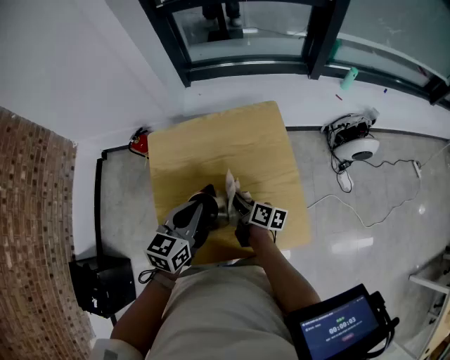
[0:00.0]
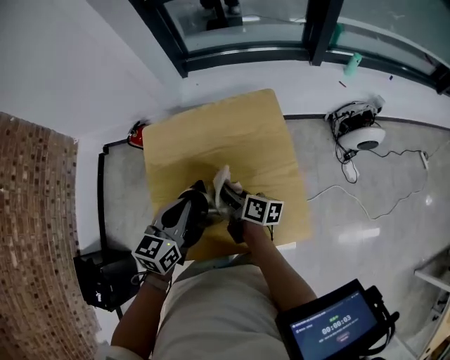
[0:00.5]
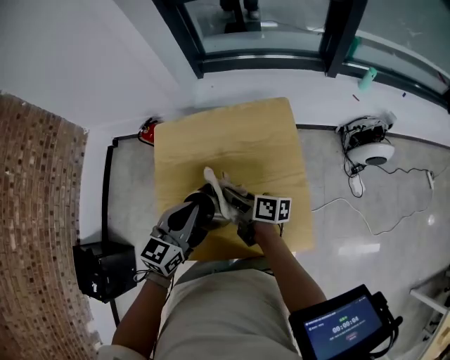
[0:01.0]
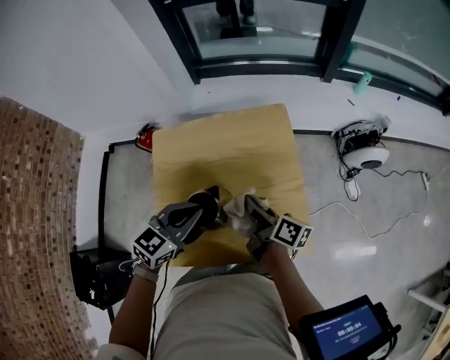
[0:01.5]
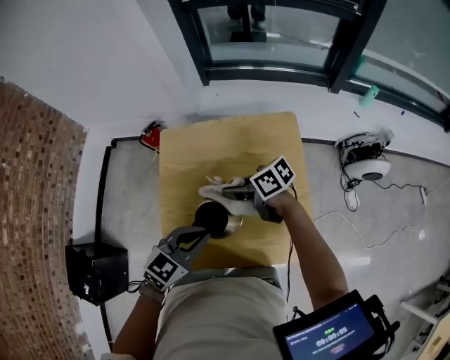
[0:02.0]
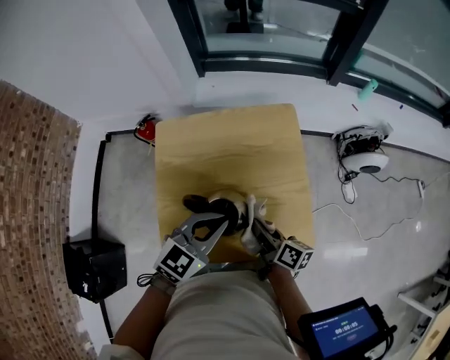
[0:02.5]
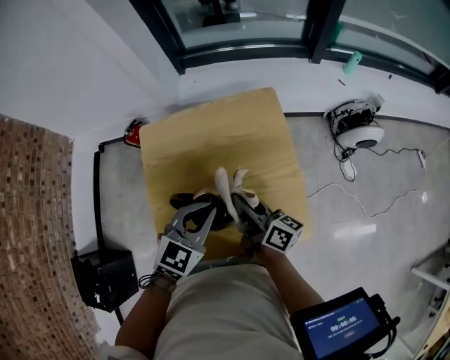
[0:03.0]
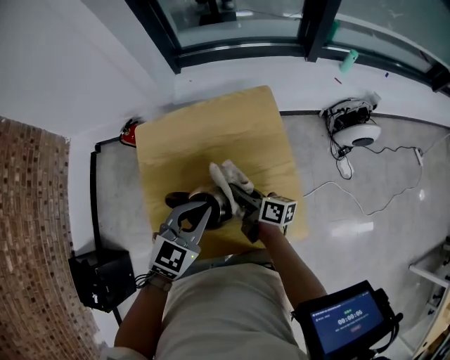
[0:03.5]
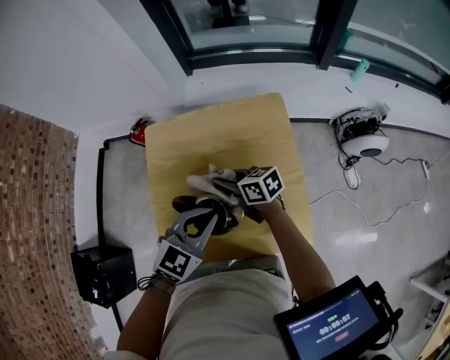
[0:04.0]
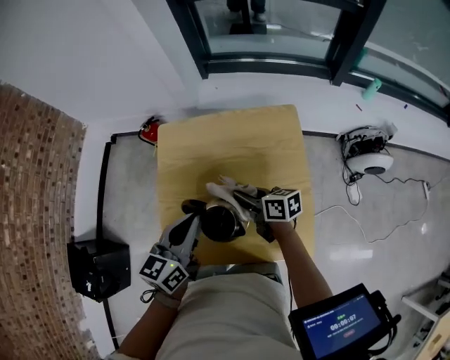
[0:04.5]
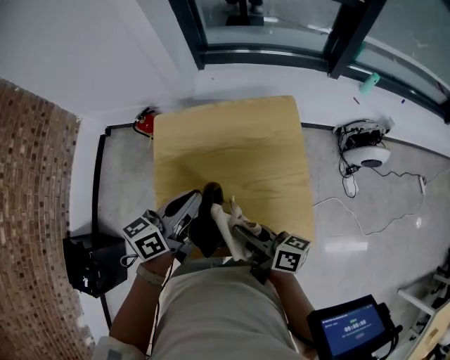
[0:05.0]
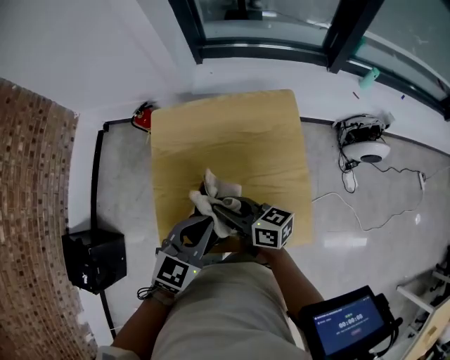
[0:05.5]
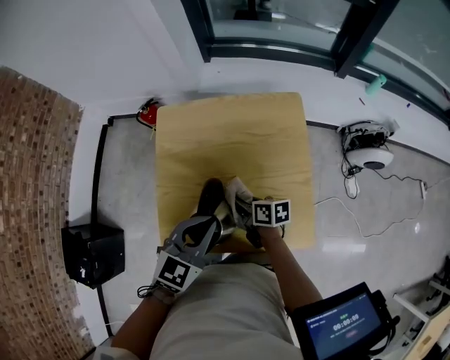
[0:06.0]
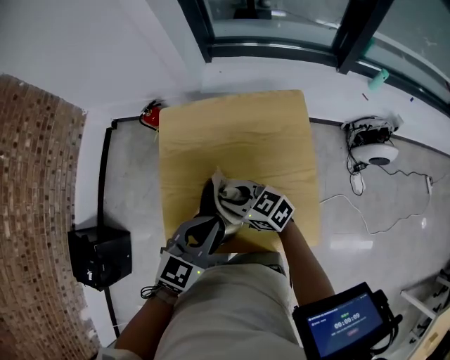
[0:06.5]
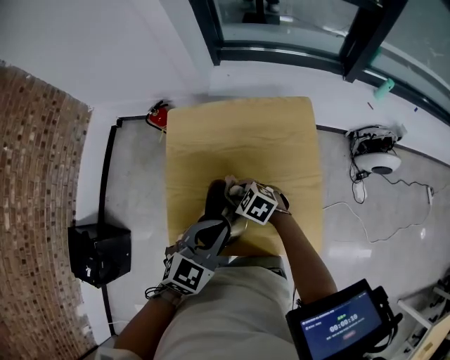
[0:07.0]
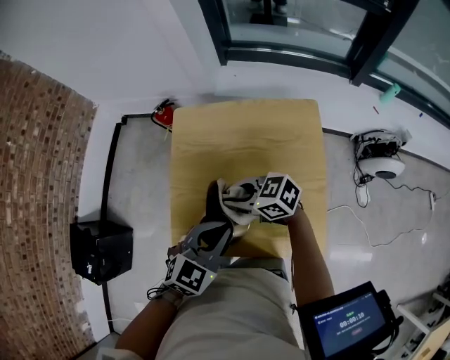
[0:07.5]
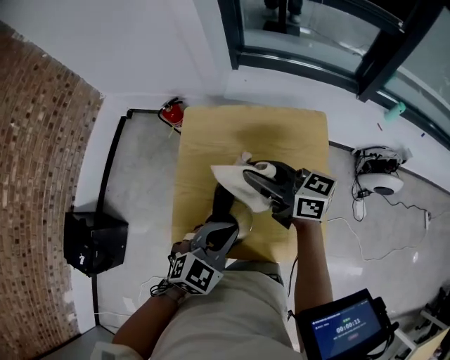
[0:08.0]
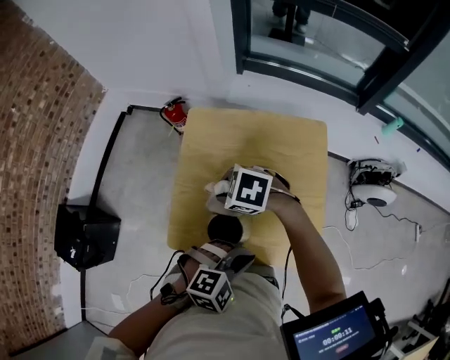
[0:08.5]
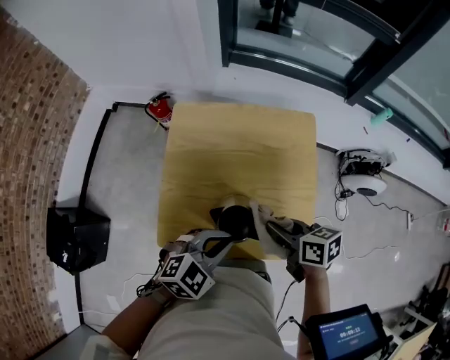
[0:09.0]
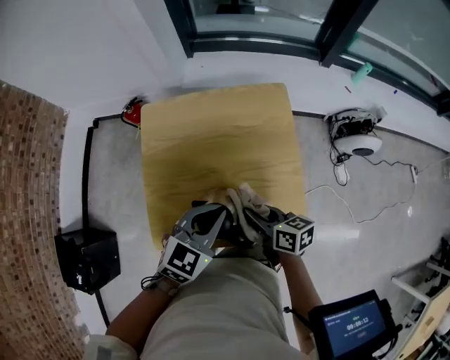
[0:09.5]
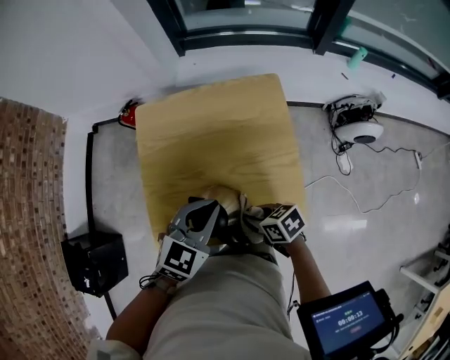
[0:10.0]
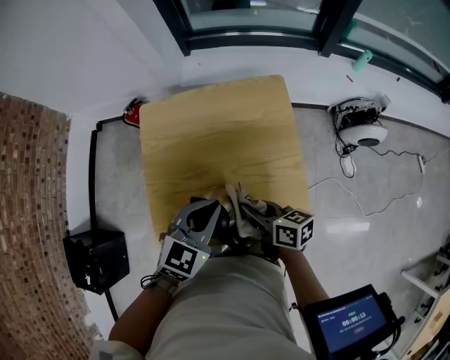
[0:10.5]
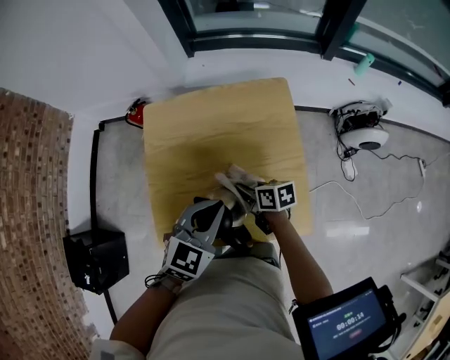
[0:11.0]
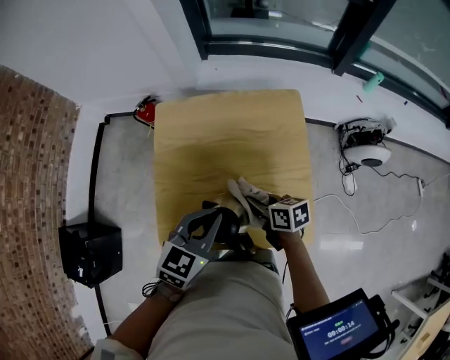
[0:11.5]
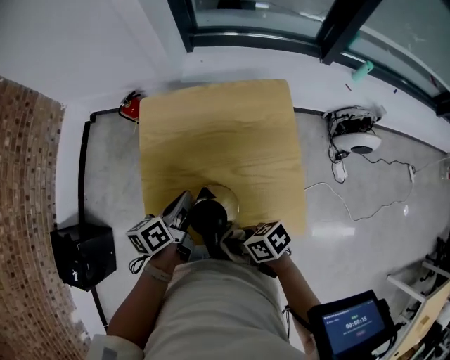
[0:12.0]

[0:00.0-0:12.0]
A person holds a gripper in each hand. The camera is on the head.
0:00.0 to 0:02.0: The left gripper changes place by some 5 cm, and turns by about 20 degrees. Meanwhile the right gripper heads upward, covering some 10 cm, and swivels some 60 degrees.
0:02.0 to 0:04.0: The right gripper turns by approximately 20 degrees. Meanwhile the left gripper ends up approximately 5 cm from where it was.
0:04.0 to 0:06.0: The left gripper shifts some 5 cm to the left, while the right gripper is displaced backward and downward by roughly 10 cm, and changes its angle by roughly 20 degrees.
0:06.0 to 0:08.0: The right gripper moves up and down over approximately 20 cm, changing direction 2 times, and changes its angle by roughly 40 degrees.
0:08.0 to 0:10.0: The right gripper shifts some 20 cm downward, and tips its fingers downward by about 40 degrees.
0:10.0 to 0:12.0: The right gripper heads to the left, covering approximately 10 cm, and reaches some 10 cm forward, then returns; the left gripper travels to the left, downward and forward by about 15 cm, and rotates around the line of its fingers by about 70 degrees, counterclockwise from behind.

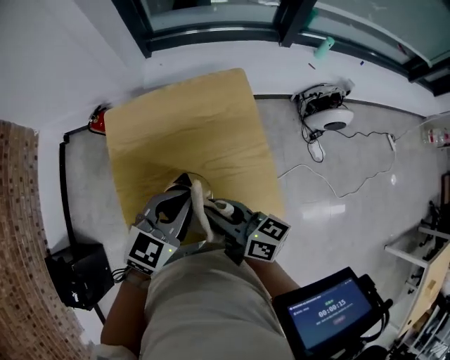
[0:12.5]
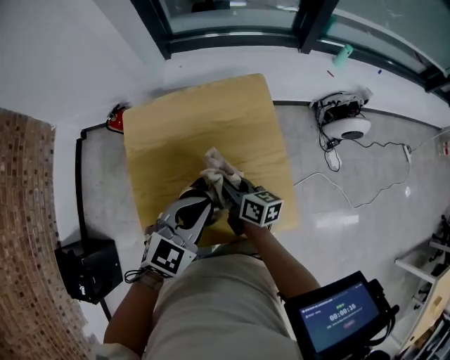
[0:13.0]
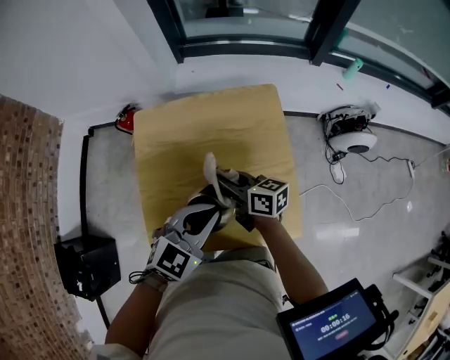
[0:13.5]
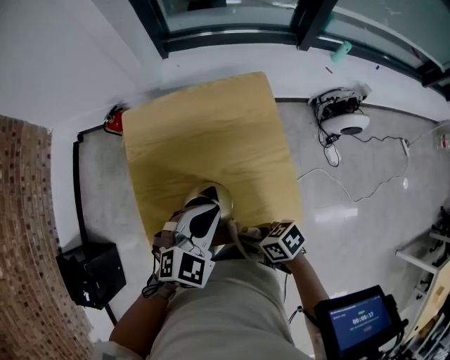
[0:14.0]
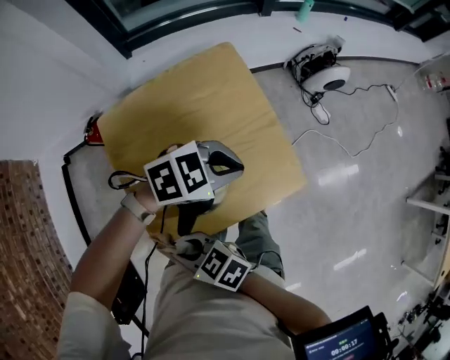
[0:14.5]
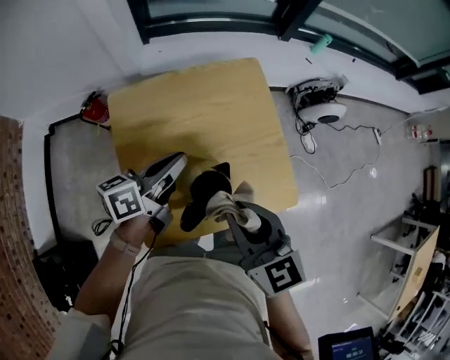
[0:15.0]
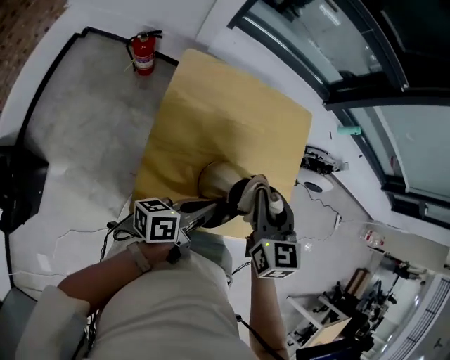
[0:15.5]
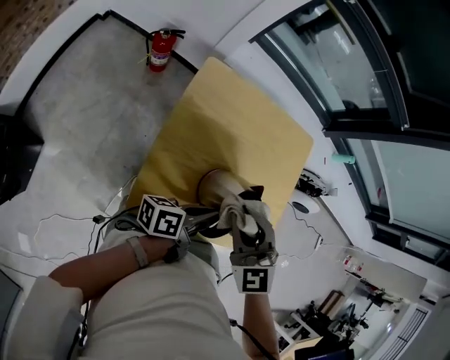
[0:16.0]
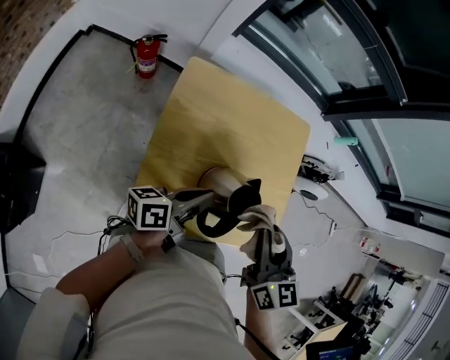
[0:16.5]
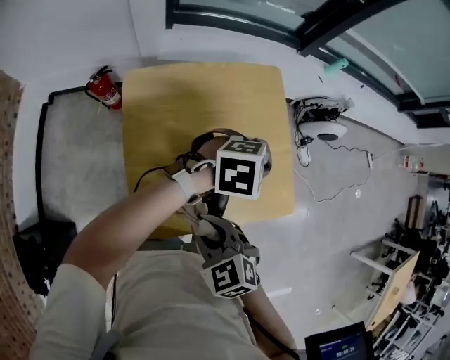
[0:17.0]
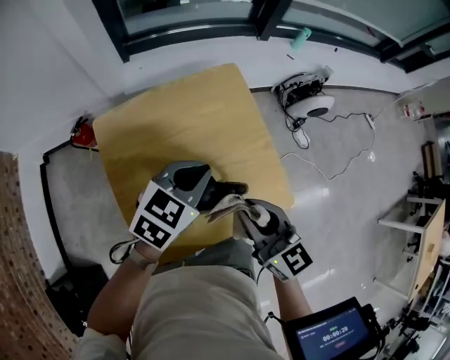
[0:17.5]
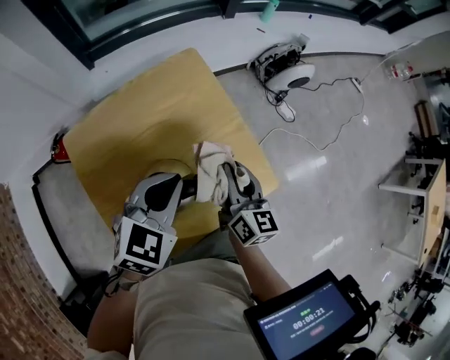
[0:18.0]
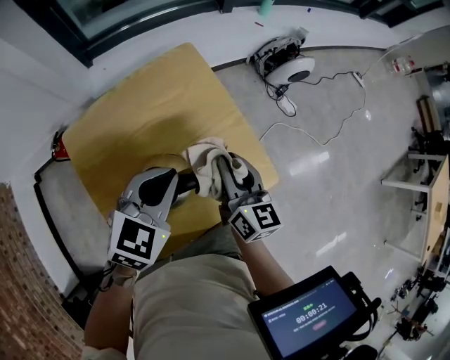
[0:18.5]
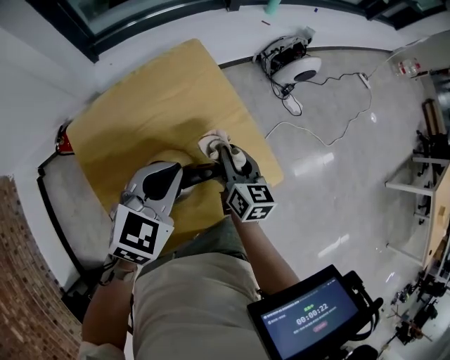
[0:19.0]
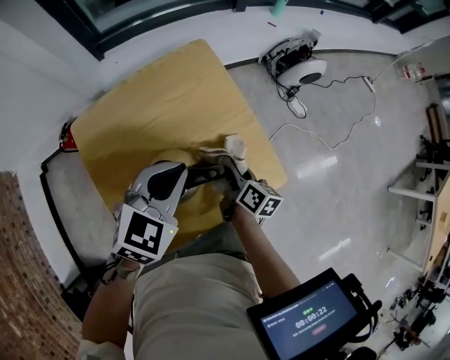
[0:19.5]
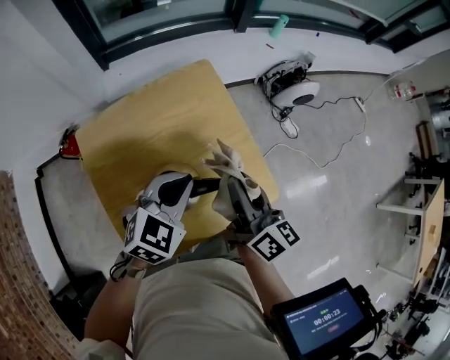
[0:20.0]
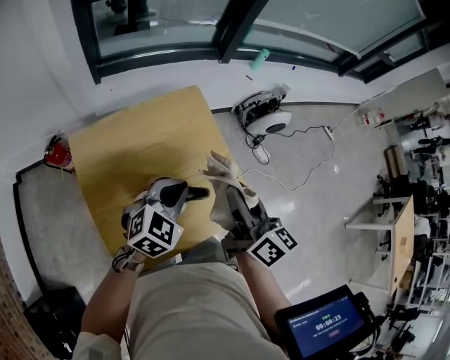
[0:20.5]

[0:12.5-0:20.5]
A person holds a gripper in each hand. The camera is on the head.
0:12.5 to 0:14.5: The left gripper shifts by about 10 cm, and swivels some 60 degrees. The right gripper goes up and down, some 10 cm each way, reversing 3 times, and swivels roughly 30 degrees.
0:14.5 to 0:16.5: The right gripper ends up approximately 20 cm from where it was, and swivels roughly 50 degrees. Meanwhile the left gripper ends up approximately 25 cm from where it was, and tilts its fingers about 40 degrees upward.
0:16.5 to 0:18.5: The right gripper goes up and down, some 15 cm each way, reversing 2 times, and rotates approximately 40 degrees, while the left gripper moves some 20 cm, and twists some 80 degrees clockwise, seen from behind.
0:18.5 to 0:20.5: The right gripper moves upward, roughly 15 cm.

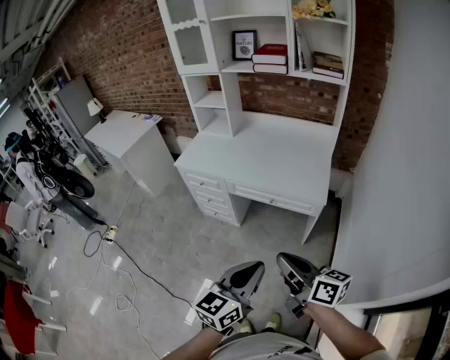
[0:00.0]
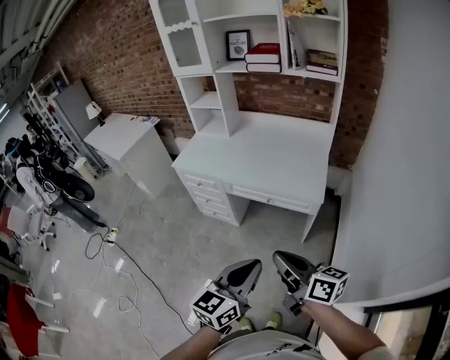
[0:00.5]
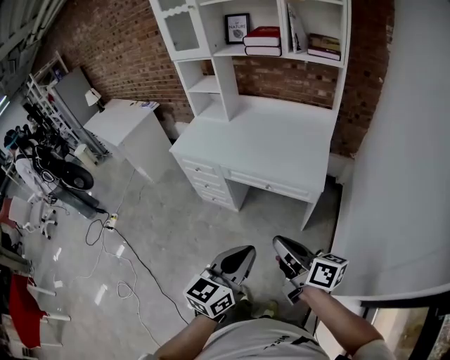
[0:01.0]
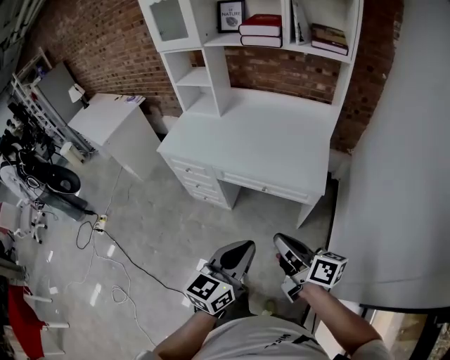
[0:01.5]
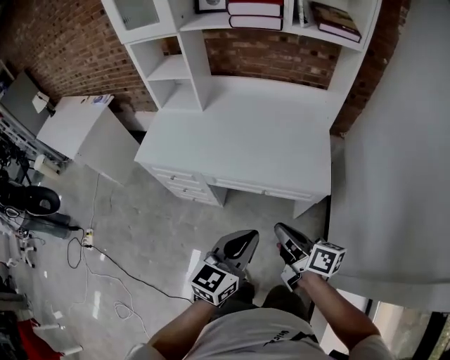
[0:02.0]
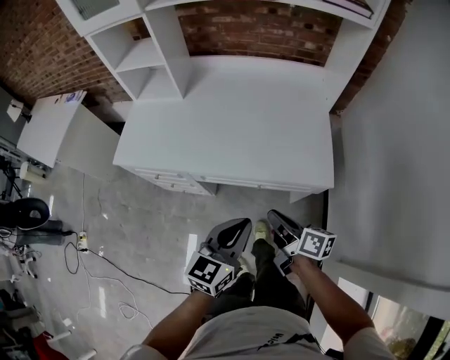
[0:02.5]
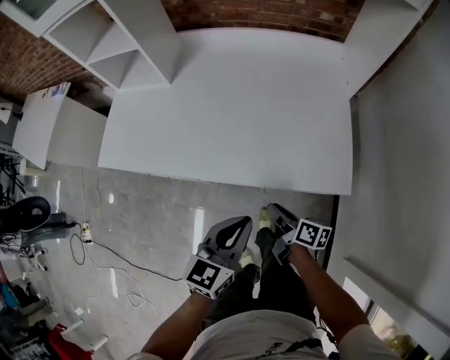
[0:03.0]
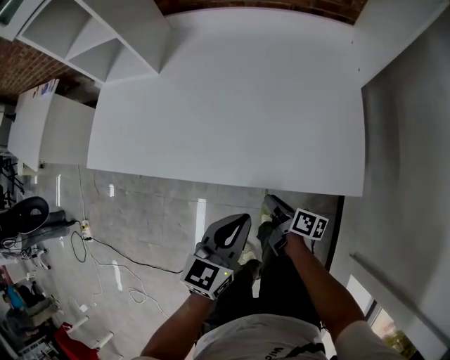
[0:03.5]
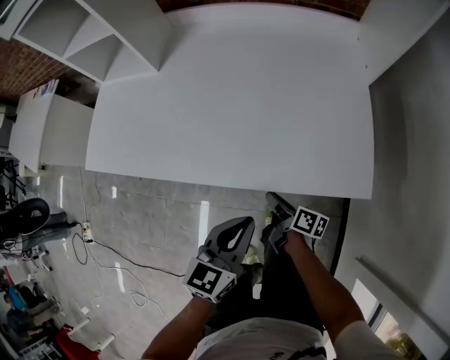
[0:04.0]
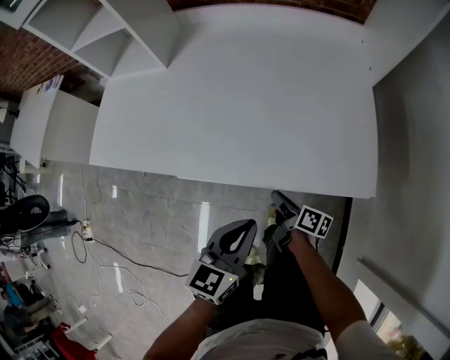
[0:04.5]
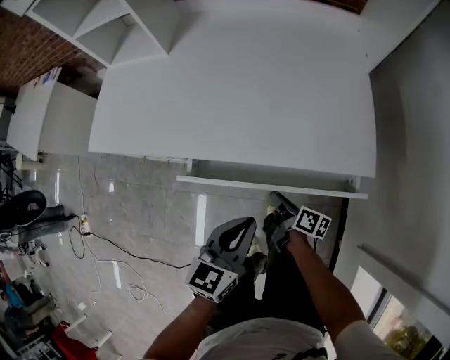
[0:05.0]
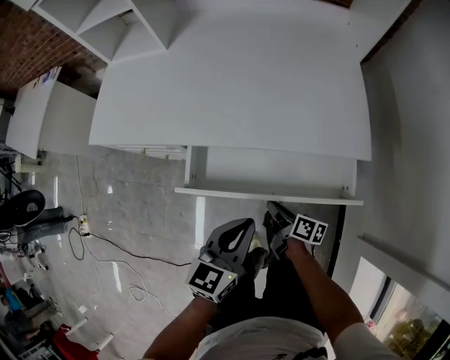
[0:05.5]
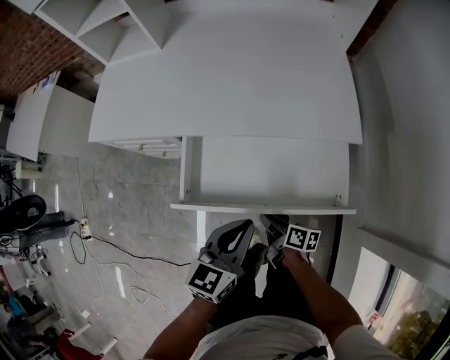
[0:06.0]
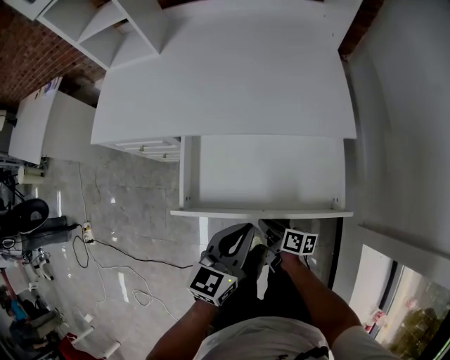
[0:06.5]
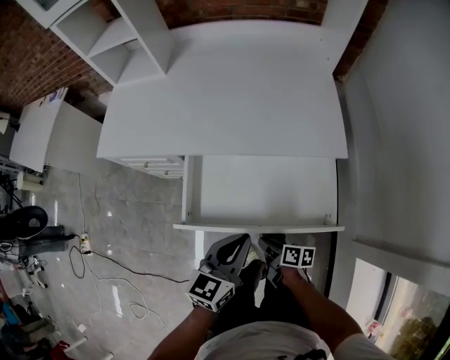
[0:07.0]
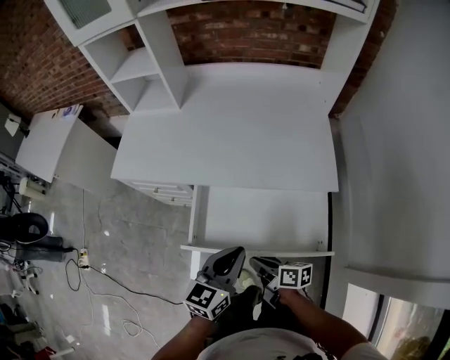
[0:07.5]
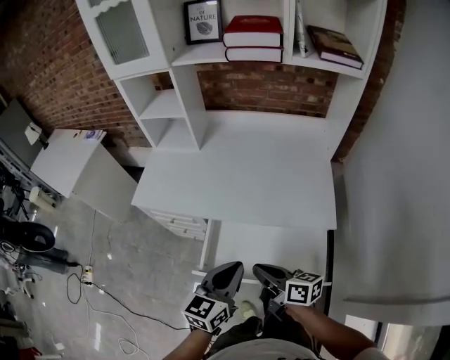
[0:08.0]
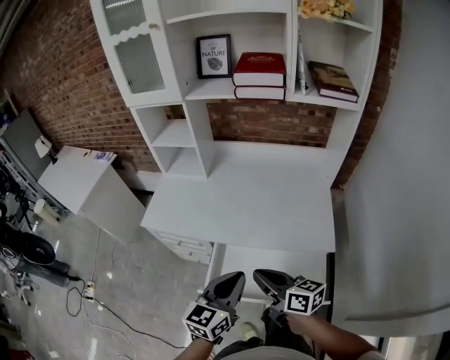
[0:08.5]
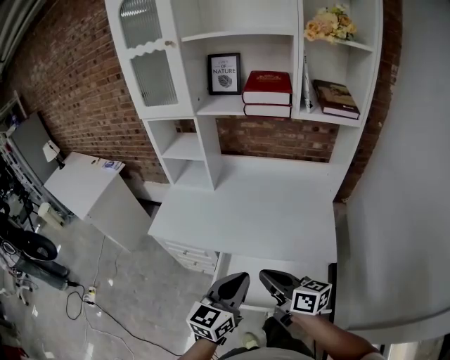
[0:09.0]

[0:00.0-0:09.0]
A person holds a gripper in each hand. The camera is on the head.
0:00.0 to 0:02.0: The right gripper goes roughly 30 cm forward and downward. Meanwhile the left gripper shifts about 25 cm forward.
0:02.0 to 0:04.5: The two grippers go about 35 cm downward and forward. The right gripper turns by approximately 30 degrees.
0:04.5 to 0:07.0: The left gripper heads backward, covering some 15 cm. The right gripper is displaced backward by roughly 25 cm.
0:07.0 to 0:09.0: The right gripper heads upward, covering approximately 40 cm, and rotates some 50 degrees; the left gripper is displaced upward by approximately 25 cm.
